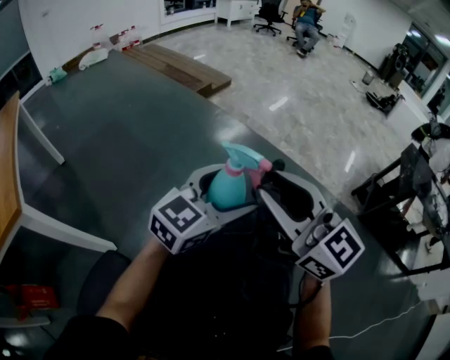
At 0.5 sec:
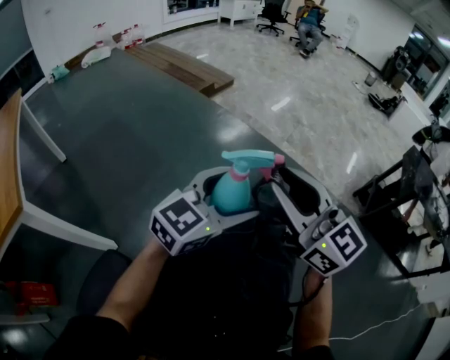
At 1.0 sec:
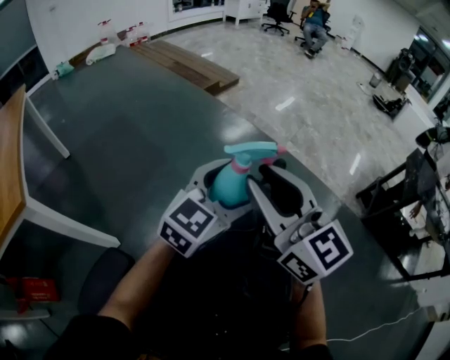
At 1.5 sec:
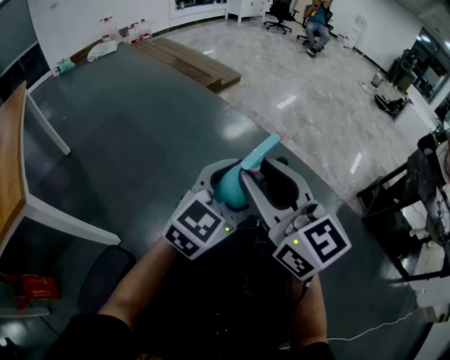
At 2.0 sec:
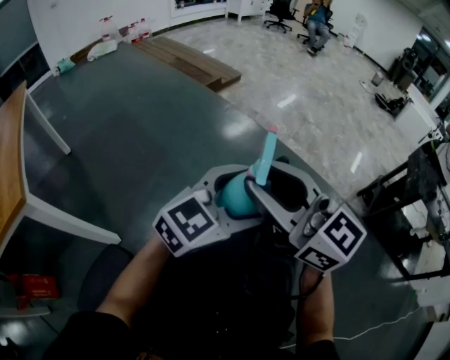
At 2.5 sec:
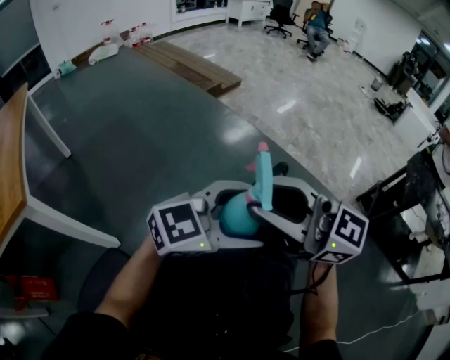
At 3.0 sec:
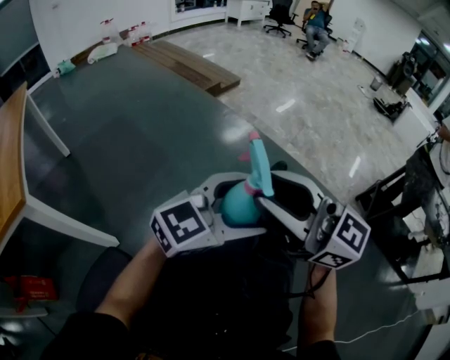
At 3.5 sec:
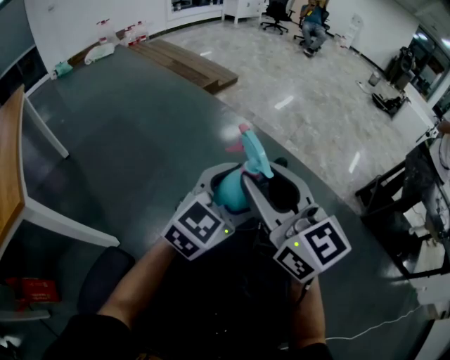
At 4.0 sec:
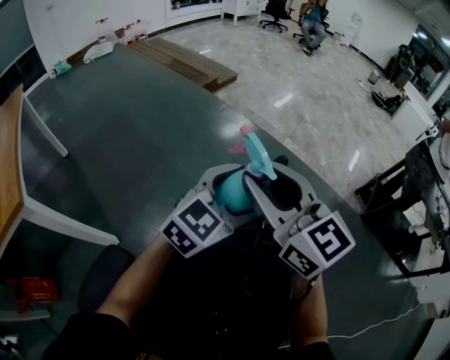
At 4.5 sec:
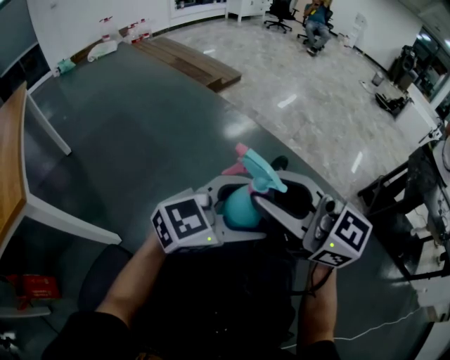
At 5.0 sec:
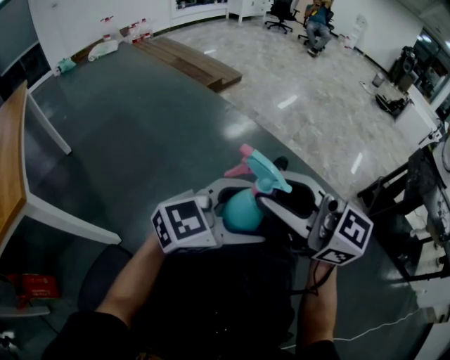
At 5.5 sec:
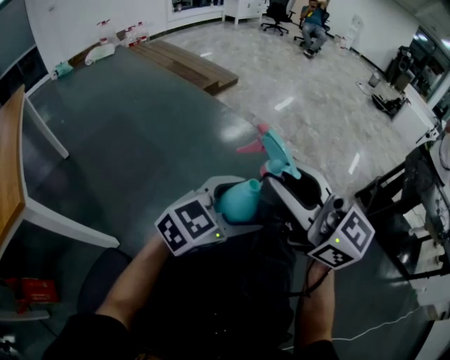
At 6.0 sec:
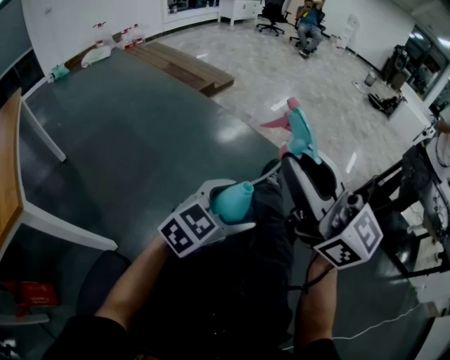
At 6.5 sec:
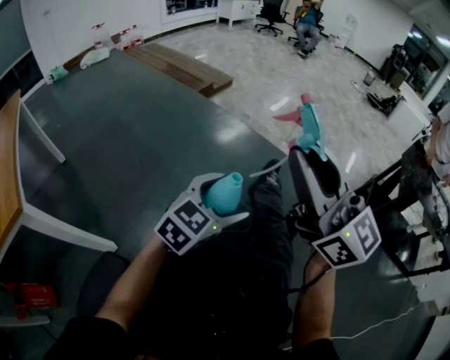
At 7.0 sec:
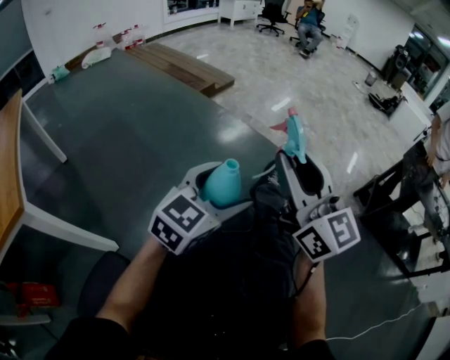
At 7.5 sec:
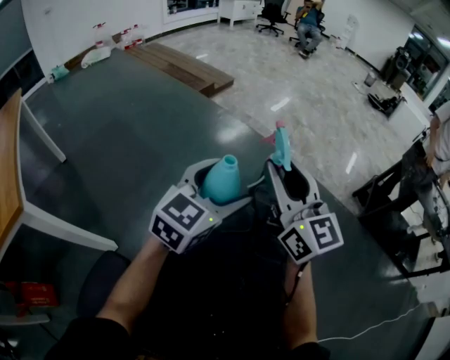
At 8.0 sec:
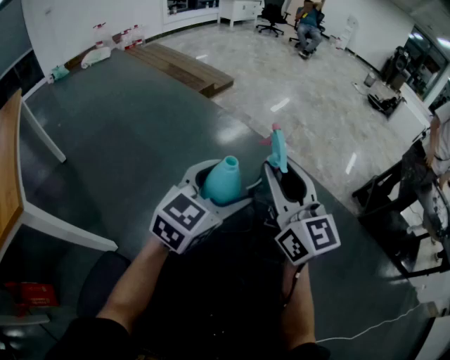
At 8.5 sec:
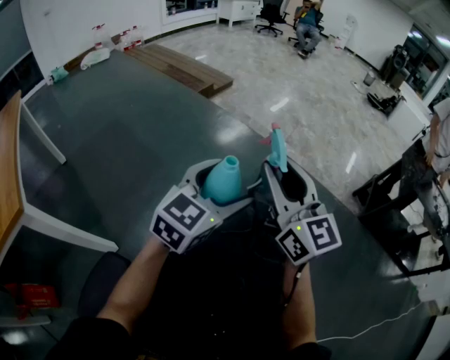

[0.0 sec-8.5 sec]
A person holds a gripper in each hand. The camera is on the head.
0.0 sec to 2.0 sec: The grippers stay close to where they were, moving slightly.
4.0 sec to 6.5 sec: The left gripper shifts by roughly 5 cm. The right gripper moves upward, about 10 cm, and changes its angle by about 20 degrees.
6.5 sec to 8.5 sec: The right gripper goes roughly 10 cm downward, while the left gripper heads upward, covering about 5 cm.

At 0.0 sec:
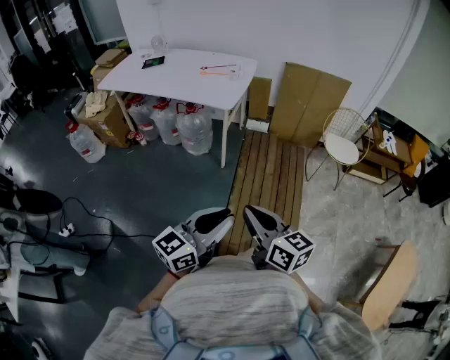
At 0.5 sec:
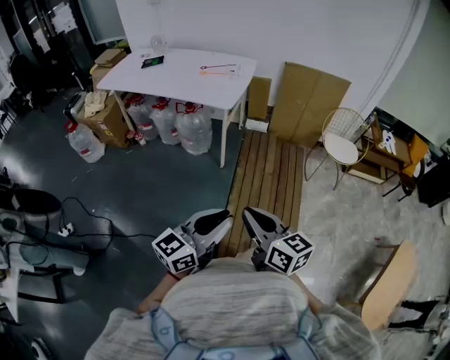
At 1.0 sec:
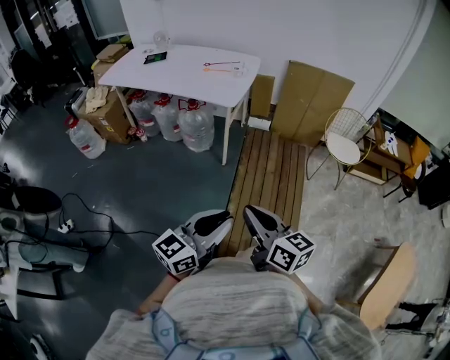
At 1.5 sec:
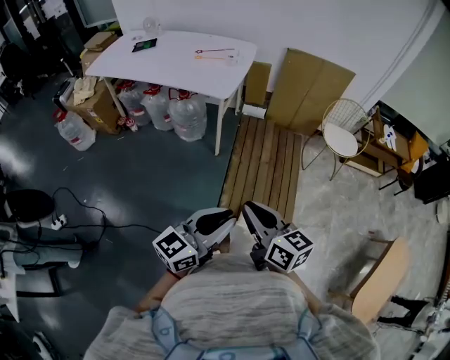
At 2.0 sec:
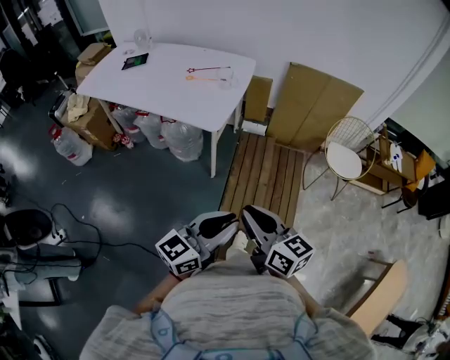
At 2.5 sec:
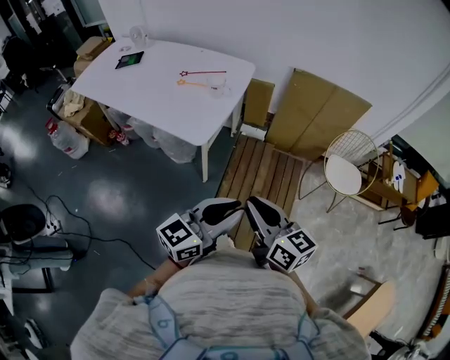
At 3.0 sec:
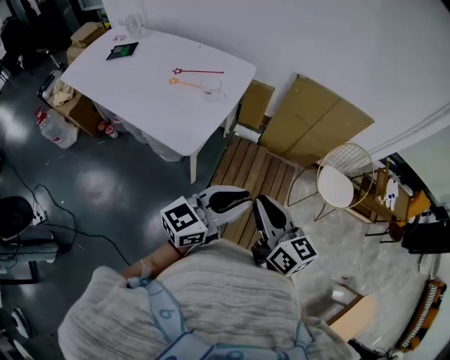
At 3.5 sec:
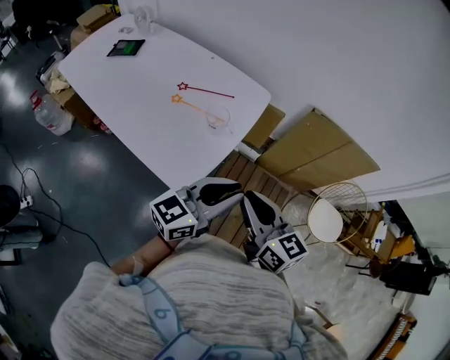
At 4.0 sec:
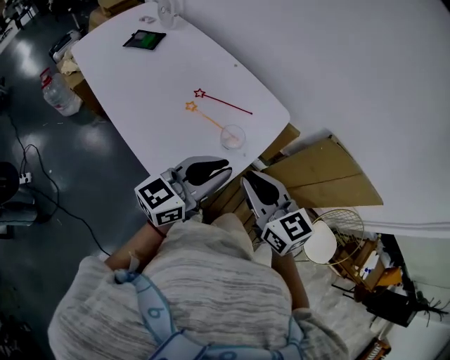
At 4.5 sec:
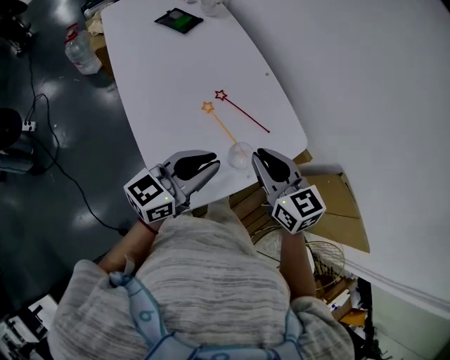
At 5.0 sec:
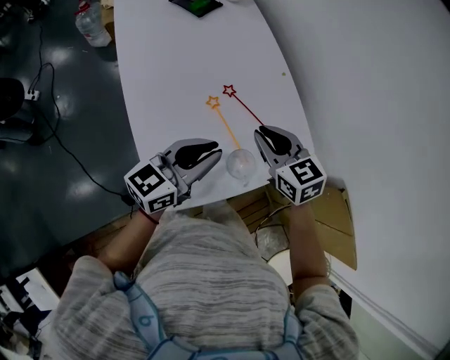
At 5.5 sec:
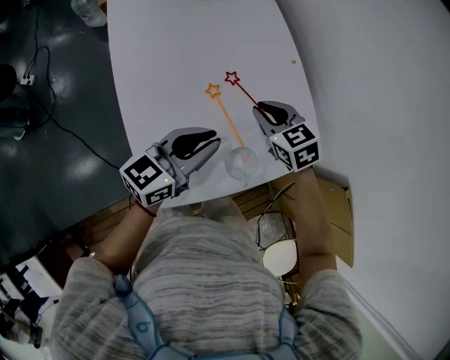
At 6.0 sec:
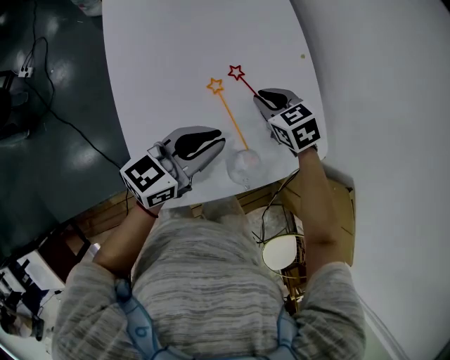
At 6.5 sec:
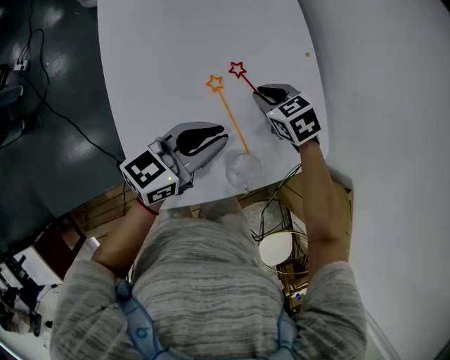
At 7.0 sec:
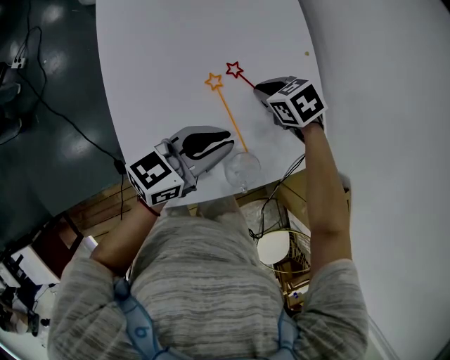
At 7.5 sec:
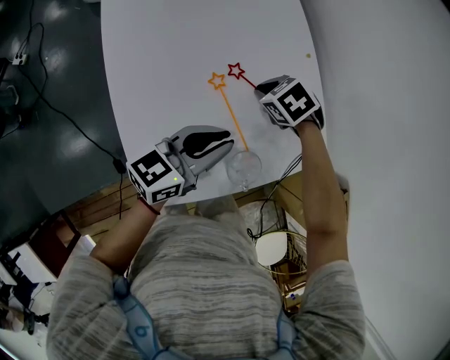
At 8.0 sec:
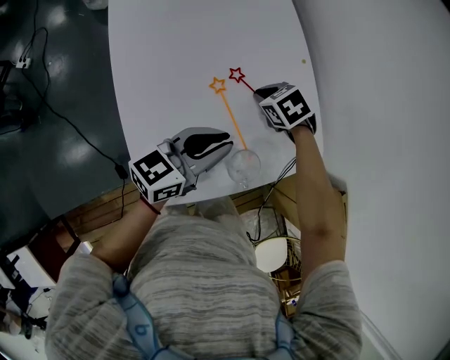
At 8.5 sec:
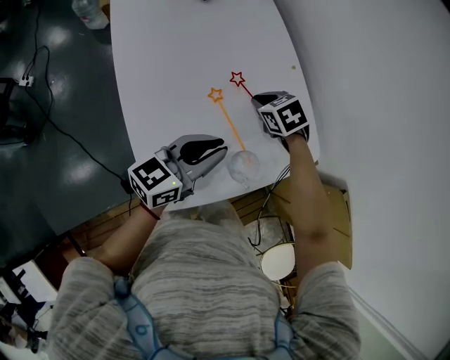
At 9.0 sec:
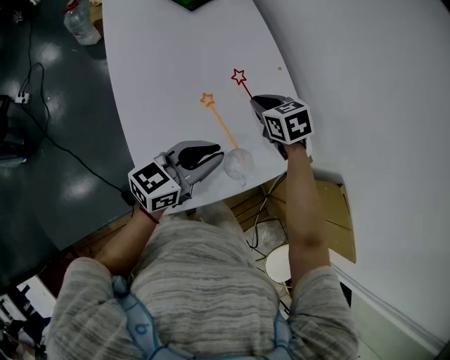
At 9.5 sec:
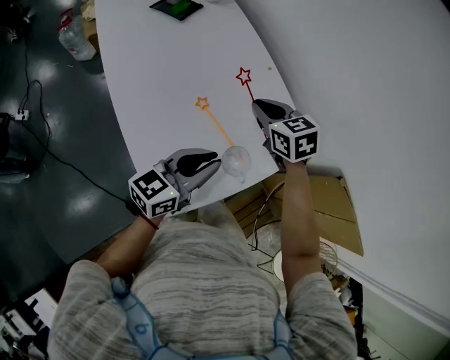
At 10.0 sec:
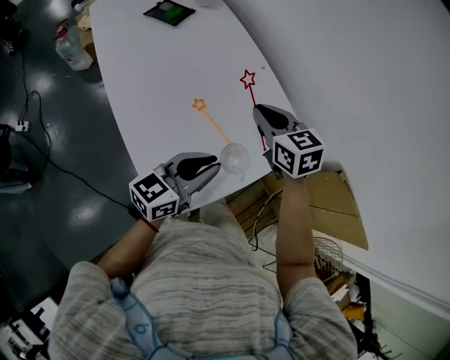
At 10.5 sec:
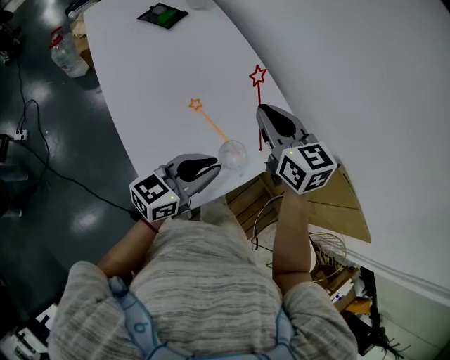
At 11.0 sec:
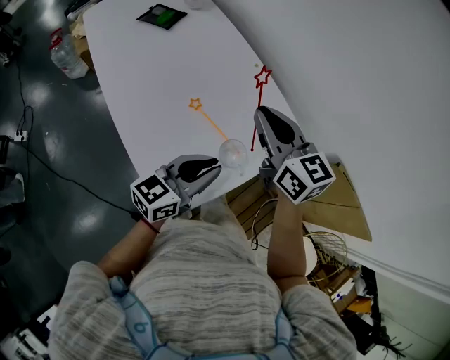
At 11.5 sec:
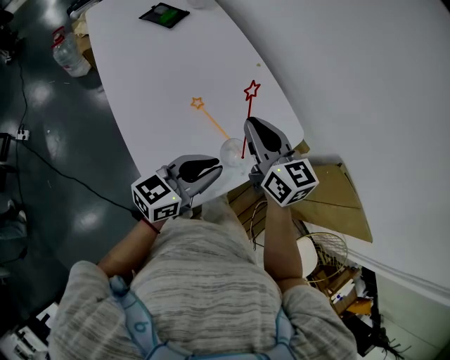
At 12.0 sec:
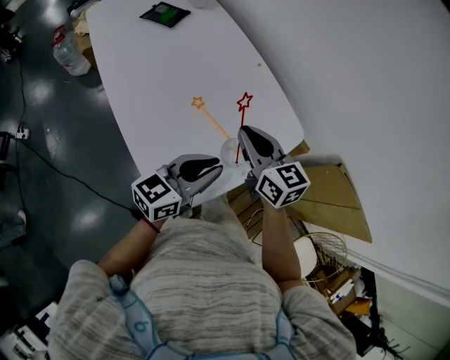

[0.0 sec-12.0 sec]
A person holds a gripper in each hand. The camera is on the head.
0.0 sec to 2.0 sec: The grippers both shift forward by approximately 20 cm.
2.0 sec to 4.0 sec: The pair of grippers is taken forward, about 50 cm. The right gripper rotates about 30 degrees. The left gripper swivels some 20 degrees.
4.0 sec to 6.0 sec: The right gripper shifts by roughly 40 cm, and tips its fingers downward by about 40 degrees. Meanwhile the left gripper shifts by approximately 20 cm, and turns by approximately 30 degrees.
8.0 sec to 10.0 sec: The left gripper is displaced backward by roughly 10 cm. Meanwhile the right gripper moves upward and backward, roughly 20 cm, and tips its fingers upward by some 40 degrees.
10.0 sec to 12.0 sec: The right gripper heads backward, covering about 5 cm, and reaches about 10 cm upward, then returns.

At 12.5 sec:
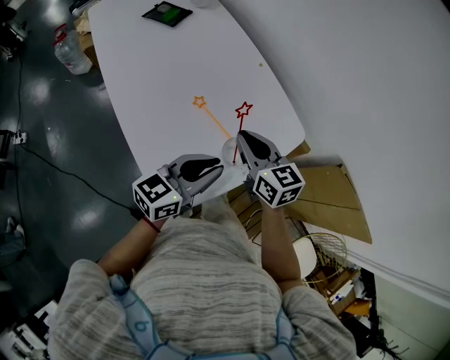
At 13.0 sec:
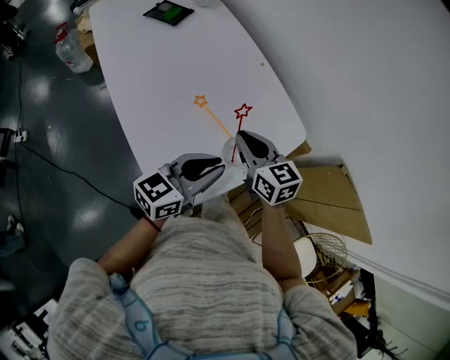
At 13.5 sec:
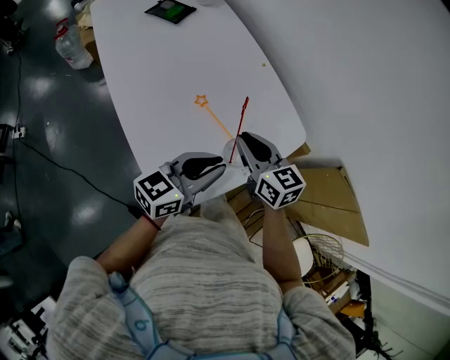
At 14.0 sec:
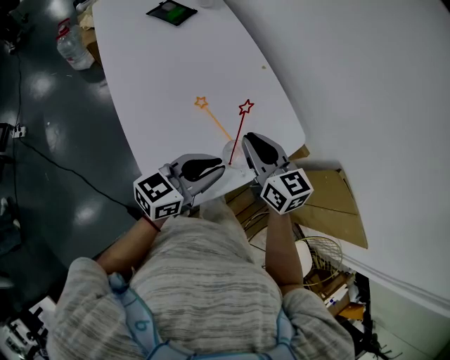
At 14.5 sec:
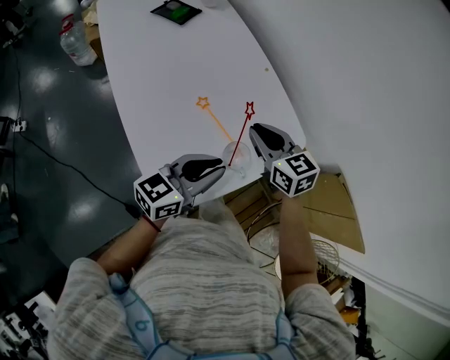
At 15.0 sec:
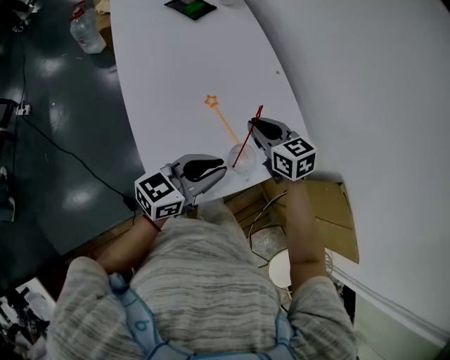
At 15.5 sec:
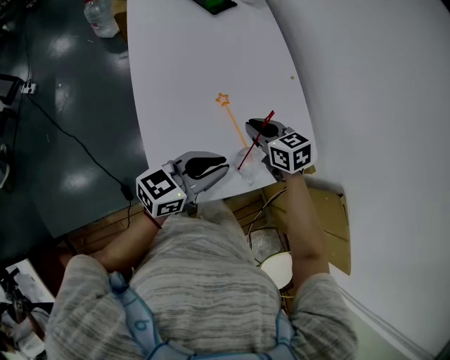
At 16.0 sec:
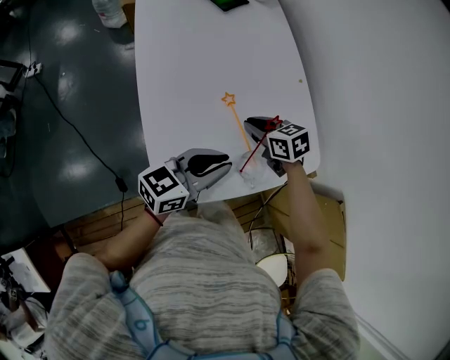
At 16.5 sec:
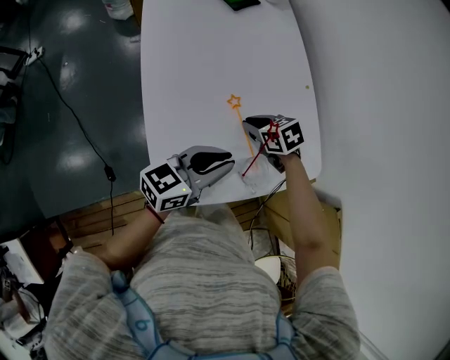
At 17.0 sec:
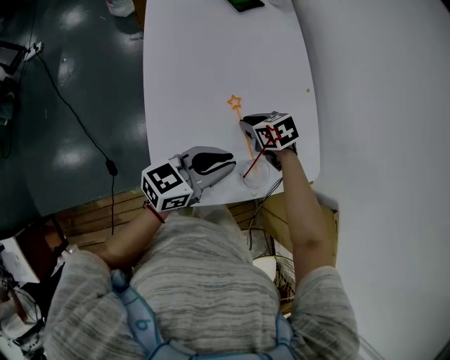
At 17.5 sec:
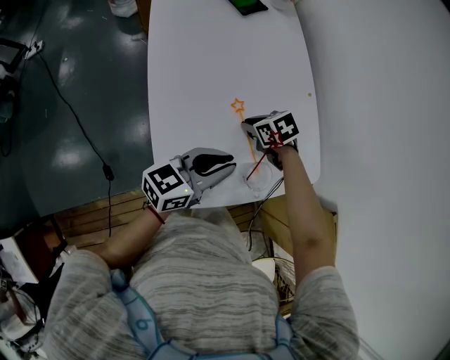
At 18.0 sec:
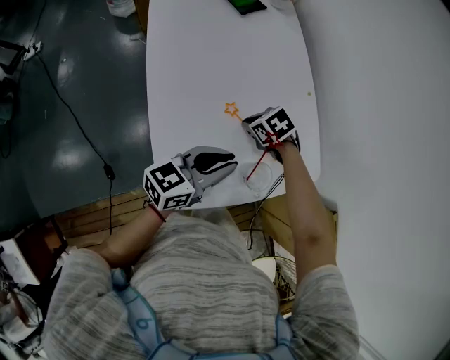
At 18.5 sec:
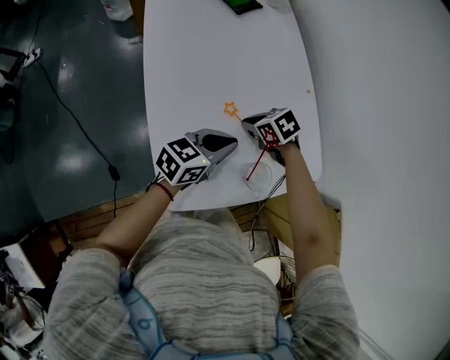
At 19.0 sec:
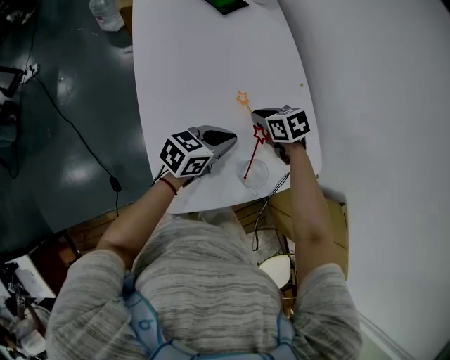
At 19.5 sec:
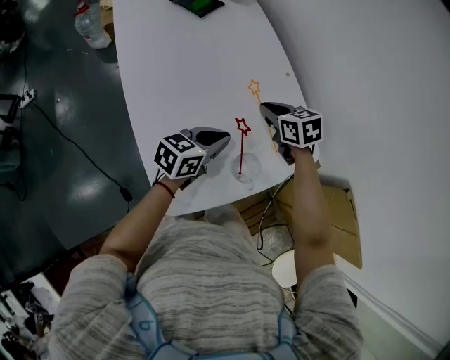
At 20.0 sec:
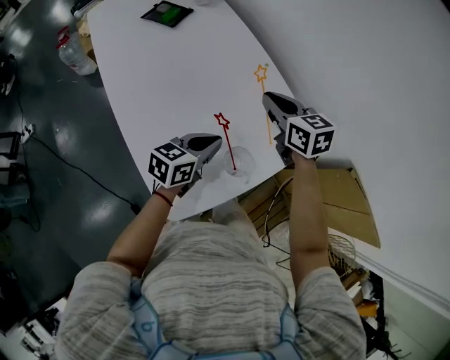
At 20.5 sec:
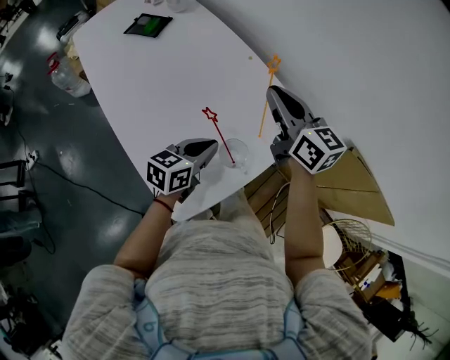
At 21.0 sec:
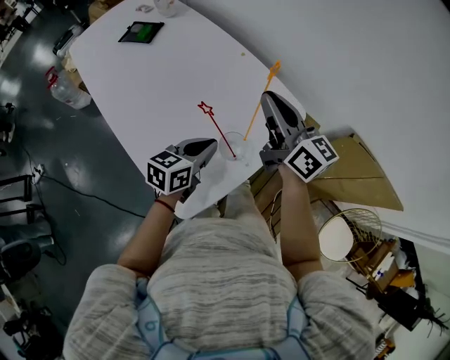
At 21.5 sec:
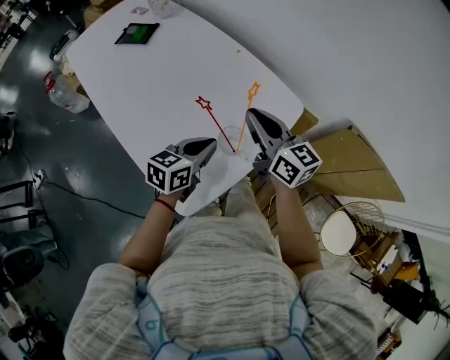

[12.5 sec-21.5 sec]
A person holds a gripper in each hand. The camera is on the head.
12.5 sec to 14.5 sec: There are only small adjustments of the grippers.
14.5 sec to 17.0 sec: The left gripper moves approximately 5 cm. The right gripper shifts approximately 15 cm downward, and tilts its fingers roughly 40 degrees downward.
17.0 sec to 19.5 sec: The left gripper moves roughly 10 cm, while the right gripper moves roughly 10 cm, and swivels some 30 degrees.
19.5 sec to 21.5 sec: The right gripper travels backward, upward and to the right by approximately 20 cm, and angles its fingers upward, by approximately 40 degrees. Meanwhile the left gripper moves backward, roughly 5 cm.
